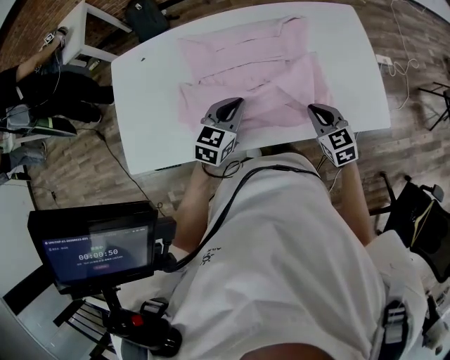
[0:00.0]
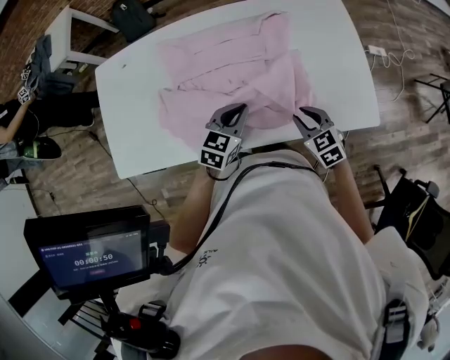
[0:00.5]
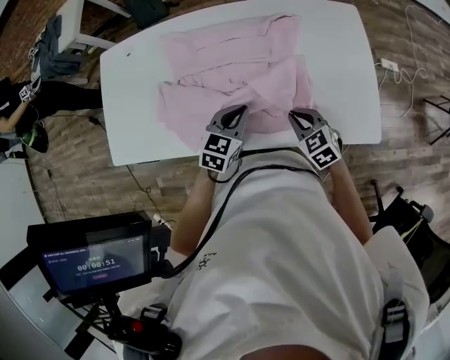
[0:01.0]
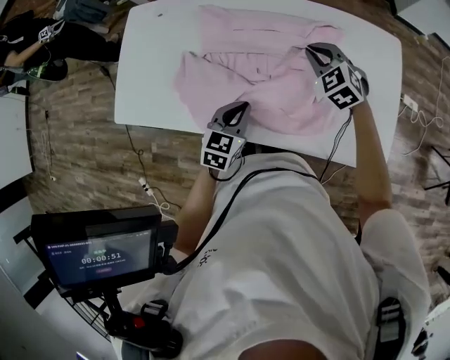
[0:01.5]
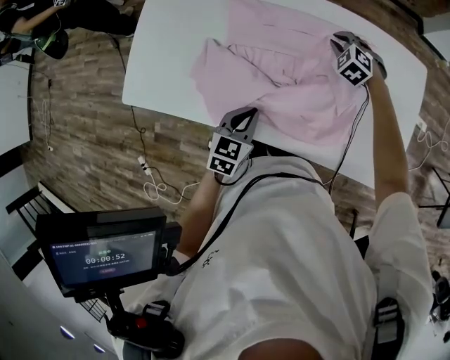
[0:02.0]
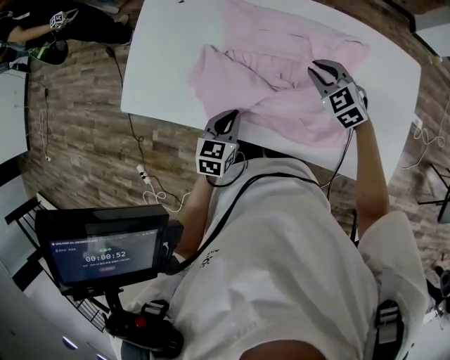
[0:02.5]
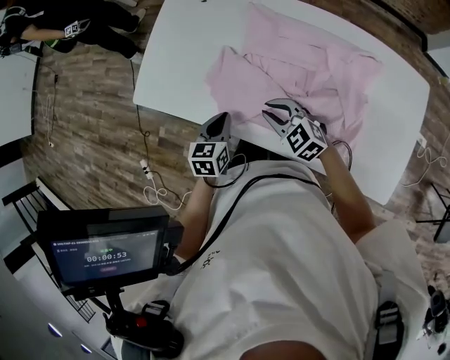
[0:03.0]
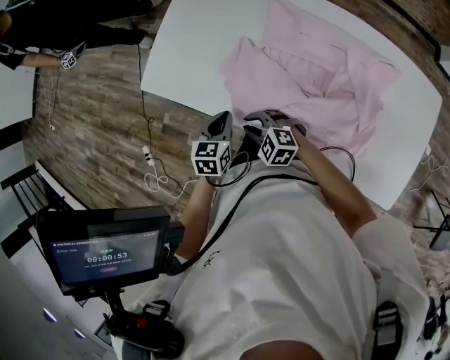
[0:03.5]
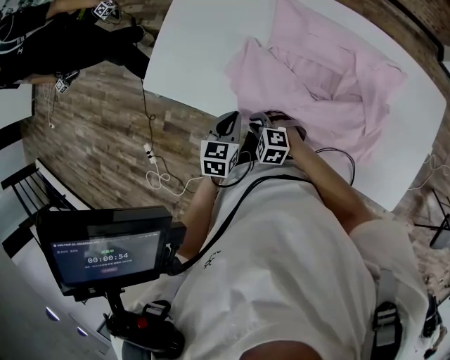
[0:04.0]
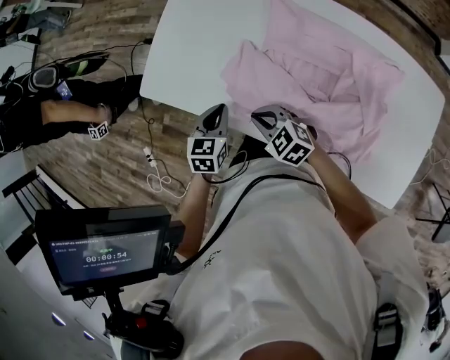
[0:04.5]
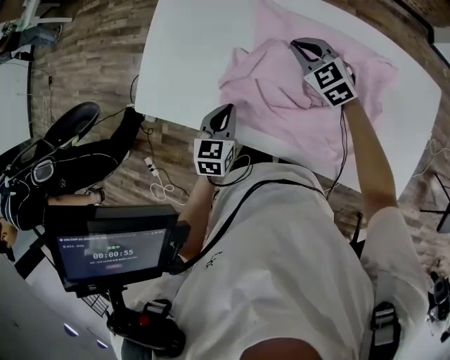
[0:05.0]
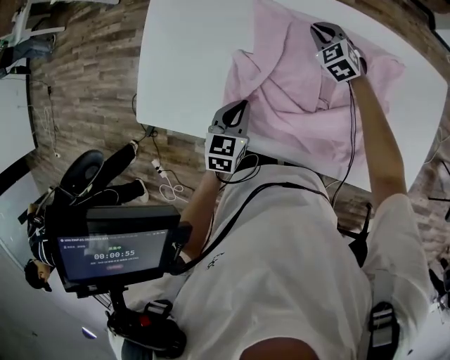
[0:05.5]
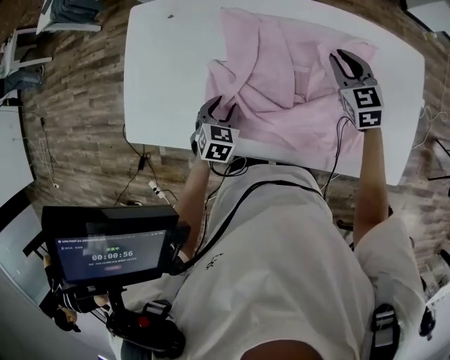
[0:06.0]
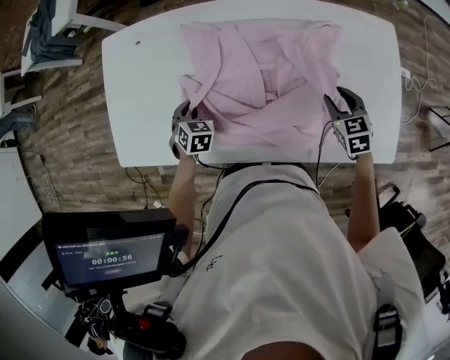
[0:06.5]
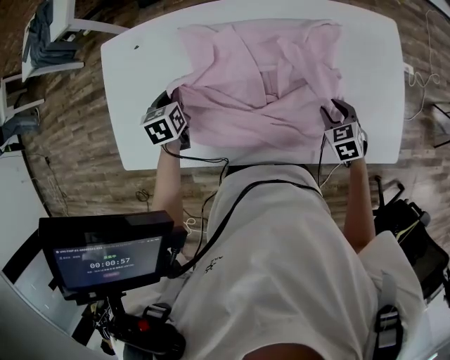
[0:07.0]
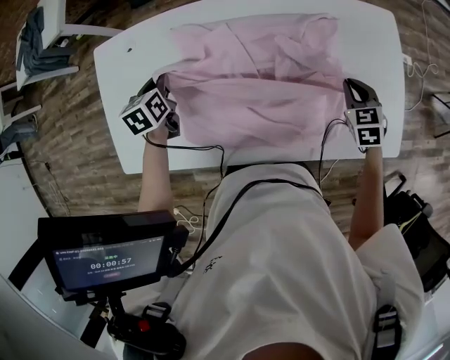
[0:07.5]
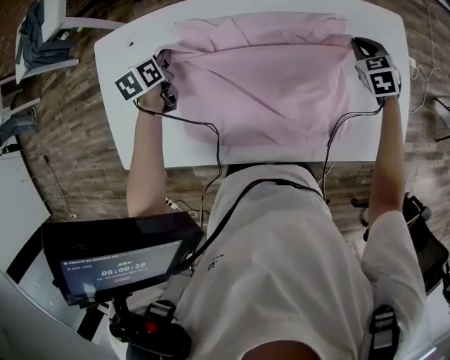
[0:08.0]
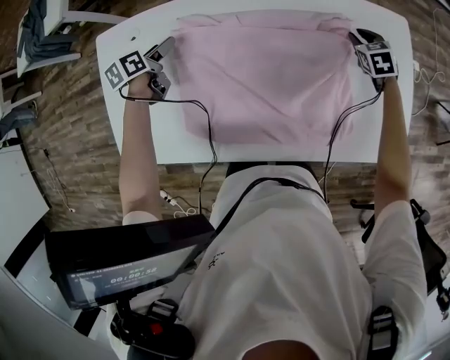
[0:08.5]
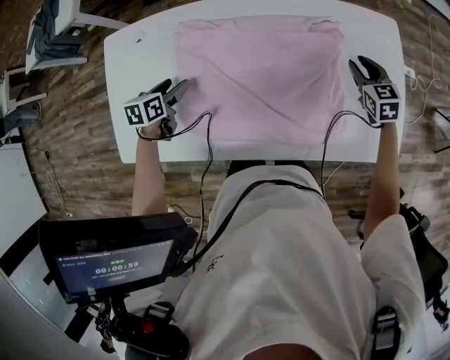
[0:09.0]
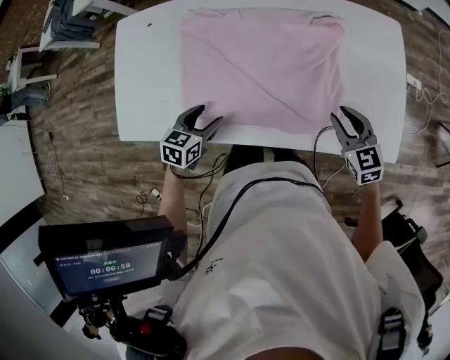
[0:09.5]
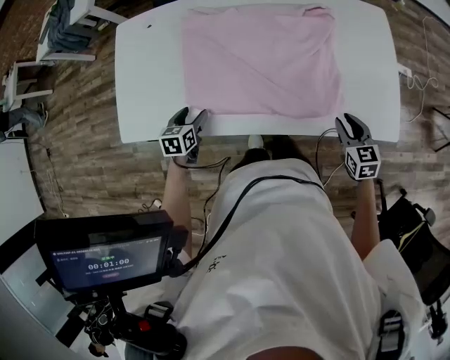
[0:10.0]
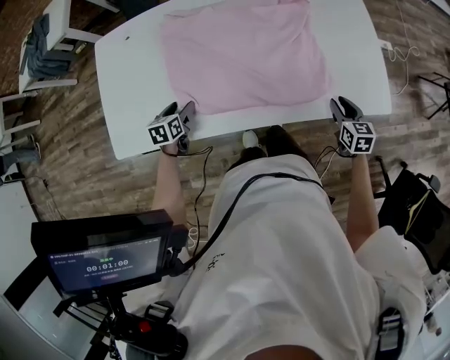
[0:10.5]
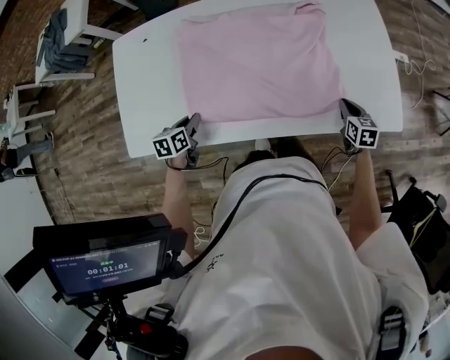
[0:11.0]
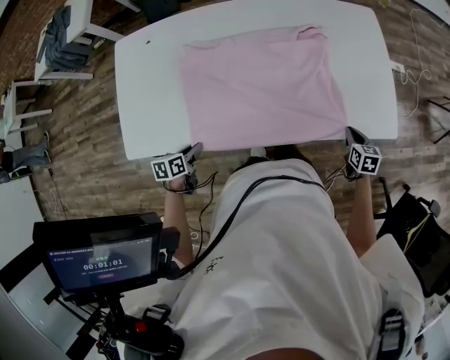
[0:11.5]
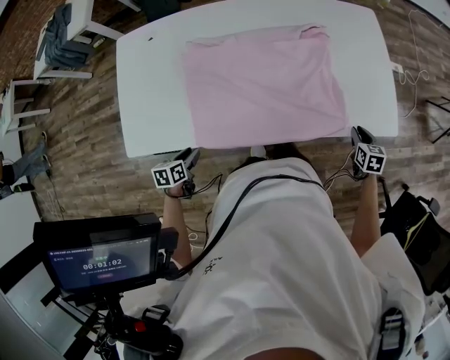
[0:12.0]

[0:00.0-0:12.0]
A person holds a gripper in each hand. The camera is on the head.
0:00.0 to 0:02.0: The left gripper goes about 5 cm downward, reaches roughly 10 cm to the right, then returns, and rotates approximately 30 degrees. The right gripper moves forward, some 30 cm, and twists about 50 degrees counterclockwise, seen from behind.
0:02.0 to 0:04.0: The right gripper shifts by some 50 cm, and turns by approximately 40 degrees, while the left gripper shifts by roughly 15 cm, and swivels about 20 degrees.
0:04.0 to 0:06.0: The left gripper shifts by some 10 cm, swivels approximately 30 degrees, and opens up. The right gripper goes up and down, approximately 25 cm each way, reversing 2 times, and rotates approximately 70 degrees.
0:06.0 to 0:08.0: The left gripper is displaced forward by roughly 25 cm, changes its angle by roughly 30 degrees, and closes up, while the right gripper goes roughly 20 cm to the right, swivels approximately 30 degrees, and opens, then closes again.
0:08.0 to 0:10.0: Both grippers travel together backward, about 30 cm. The left gripper opens; the right gripper rotates roughly 20 degrees, and opens its fingers.
0:10.0 to 0:12.0: The left gripper is displaced backward by approximately 10 cm, and closes up. Meanwhile the right gripper heads to the right and downward, covering roughly 10 cm, and changes its angle by some 20 degrees.

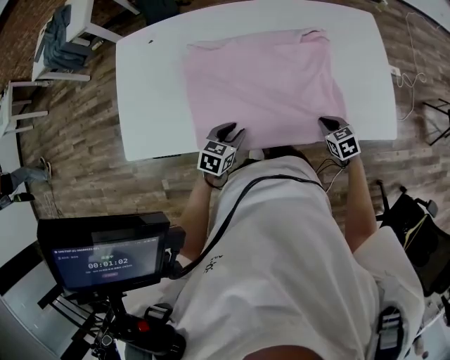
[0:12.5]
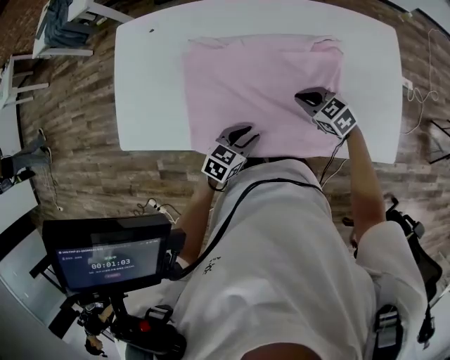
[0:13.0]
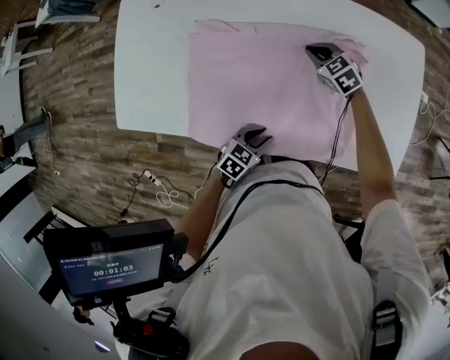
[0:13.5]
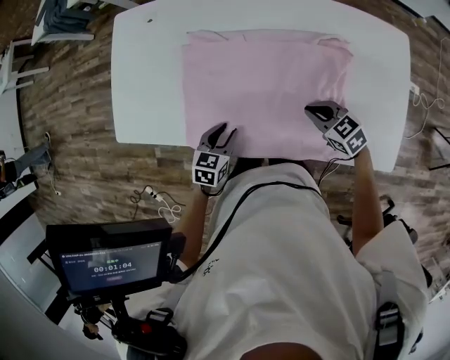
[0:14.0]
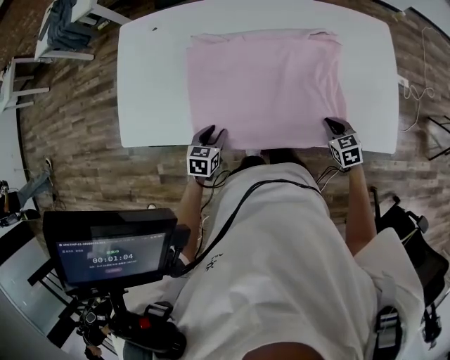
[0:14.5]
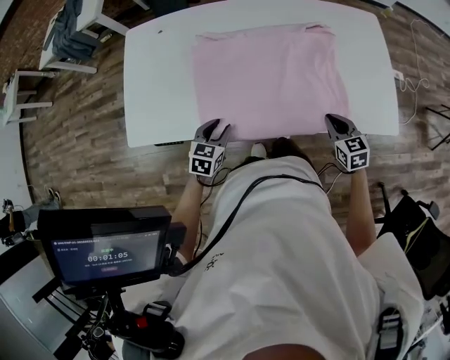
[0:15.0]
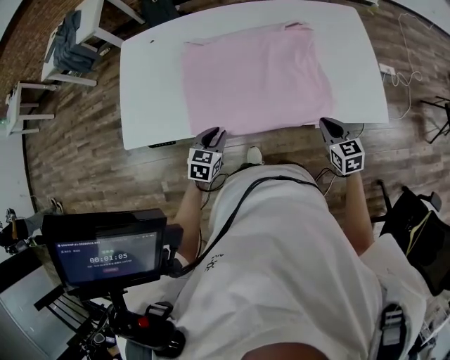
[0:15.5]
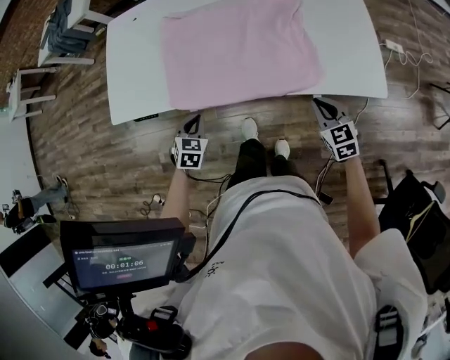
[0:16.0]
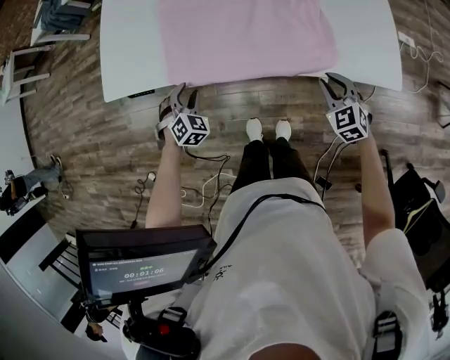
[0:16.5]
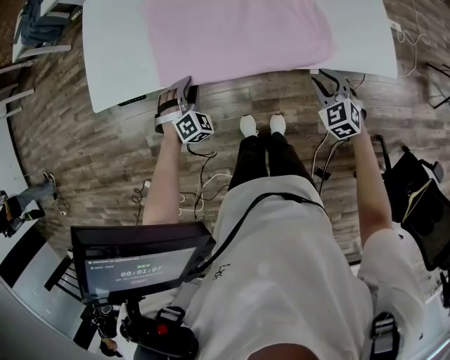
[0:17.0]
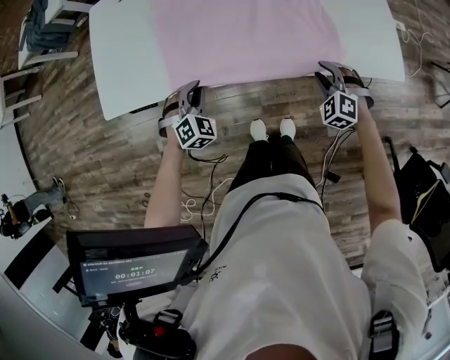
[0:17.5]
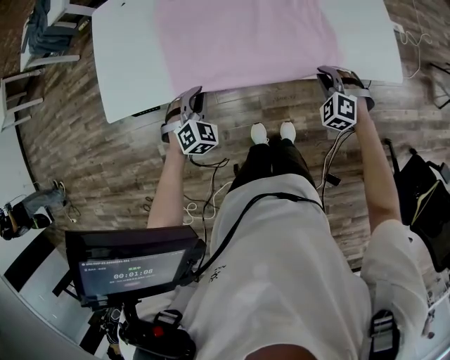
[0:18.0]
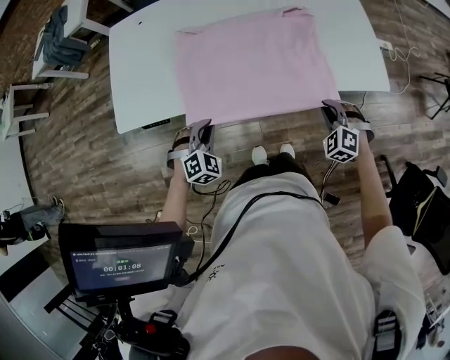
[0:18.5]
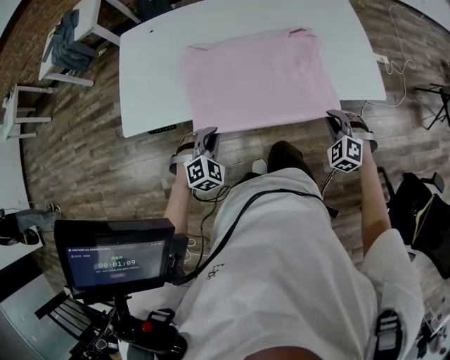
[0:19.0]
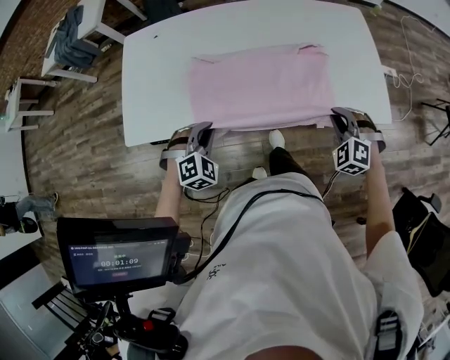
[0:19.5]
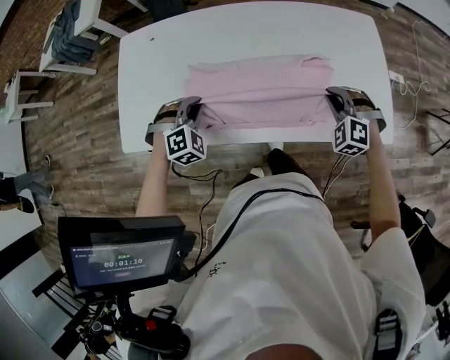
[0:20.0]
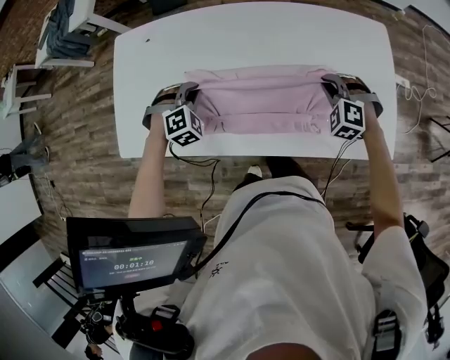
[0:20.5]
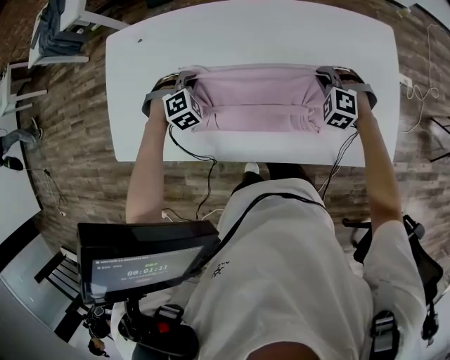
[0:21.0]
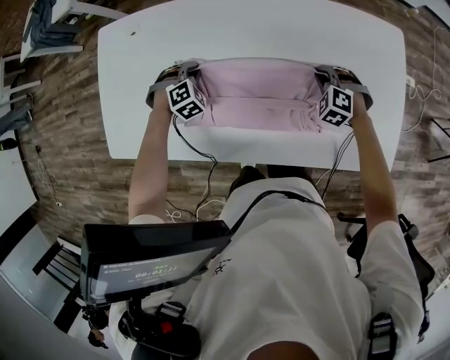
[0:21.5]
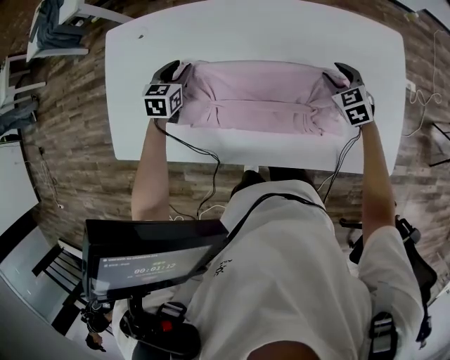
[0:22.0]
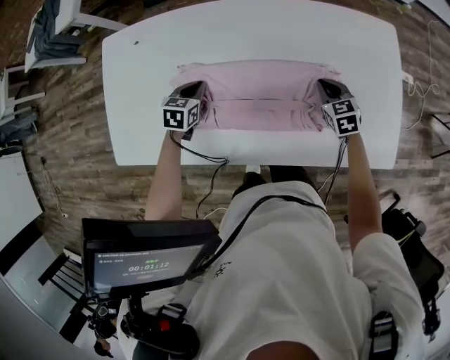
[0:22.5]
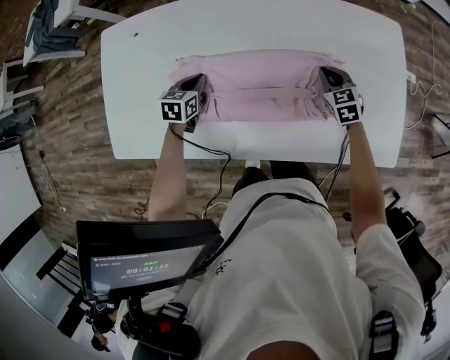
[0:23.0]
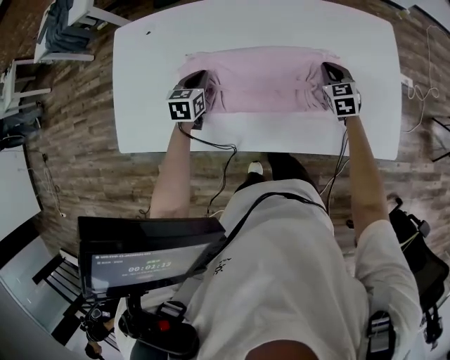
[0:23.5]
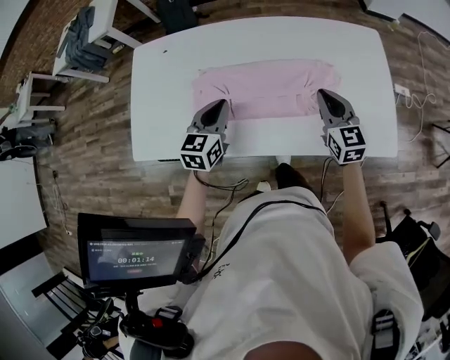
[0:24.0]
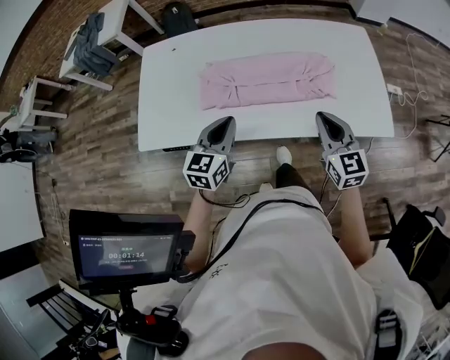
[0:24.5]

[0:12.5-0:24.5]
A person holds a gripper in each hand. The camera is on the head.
0:12.5 to 0:14.5: The left gripper changes place by about 10 cm.
0:14.5 to 0:16.5: Both grippers travel together backward, roughly 10 cm. The left gripper rotates around the line of its fingers by some 50 degrees, clockwise from behind, and closes, then opens again, while the right gripper changes its angle by some 30 degrees.
0:16.5 to 0:18.5: The left gripper is displaced backward by roughly 5 cm, changes its angle by about 20 degrees, and closes. Meanwhile the right gripper moves roughly 5 cm, and changes its angle by about 30 degrees.
0:18.5 to 0:20.5: The grippers both shift forward by approximately 30 cm.
0:20.5 to 0:22.5: The left gripper is displaced downward and forward by approximately 10 cm, rolls counterclockwise, seen from behind, by about 60 degrees, and opens, then closes again; the right gripper shifts about 5 cm downward, twists roughly 60 degrees clockwise, seen from behind, and opens, then closes again.
0:22.5 to 0:24.5: The two grippers go approximately 35 cm backward and upward. The left gripper tips its fingers upward by approximately 30 degrees. The right gripper tilts its fingers about 30 degrees upward.

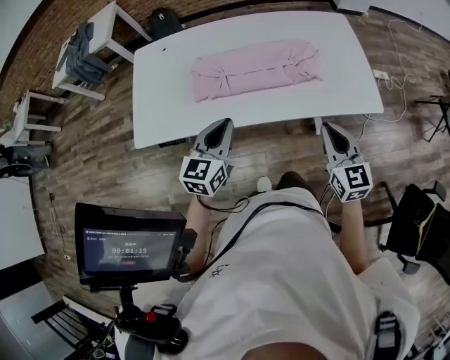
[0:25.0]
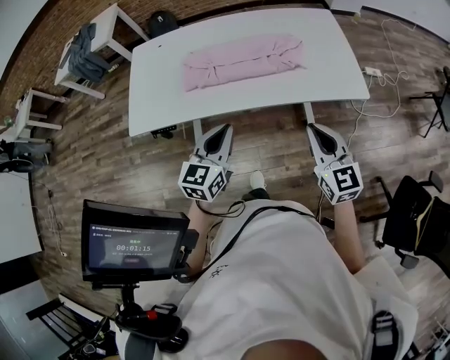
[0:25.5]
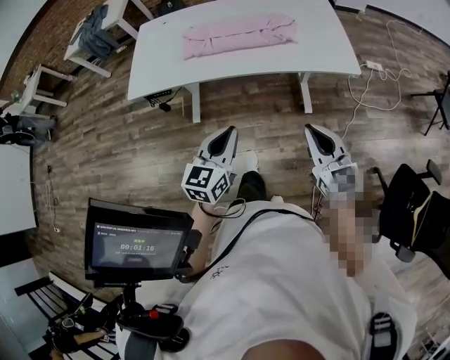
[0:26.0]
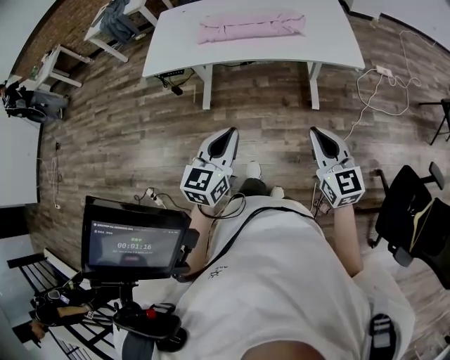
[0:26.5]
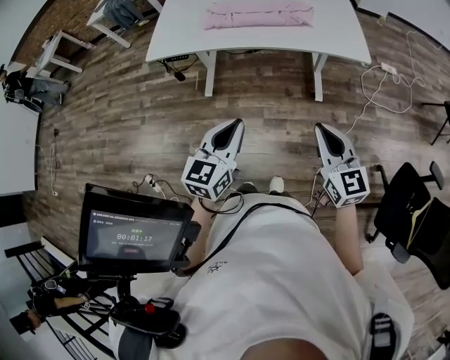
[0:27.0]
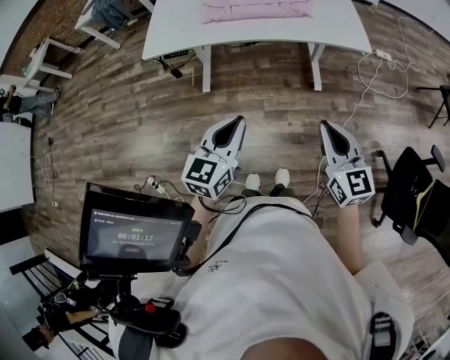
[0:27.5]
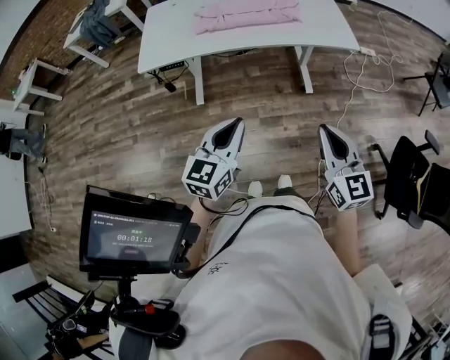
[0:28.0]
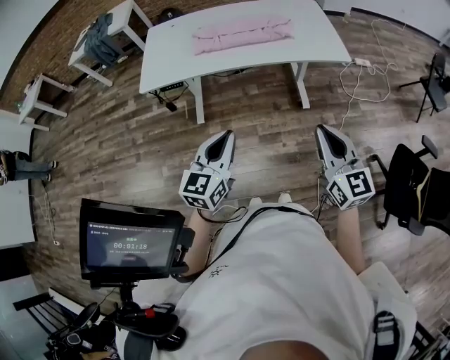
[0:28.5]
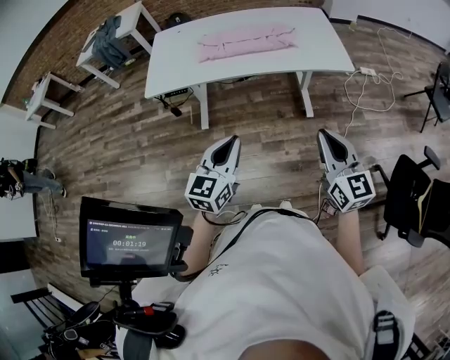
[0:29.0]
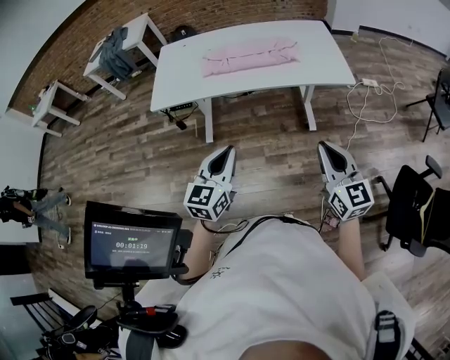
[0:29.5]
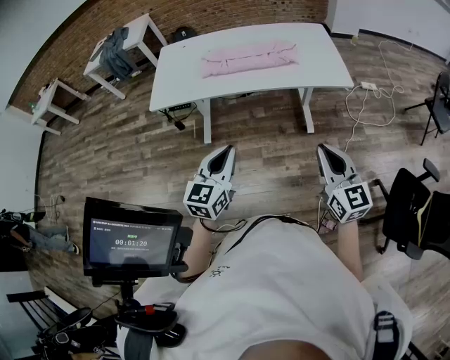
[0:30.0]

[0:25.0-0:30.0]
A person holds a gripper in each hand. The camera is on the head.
0:25.0 to 0:27.5: The two grippers go some 40 cm backward.
0:27.5 to 0:30.0: The grippers move only a little.
